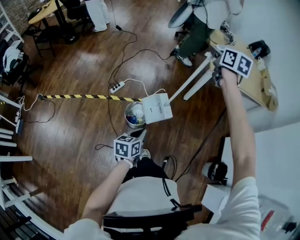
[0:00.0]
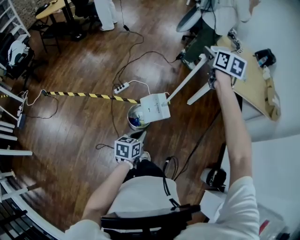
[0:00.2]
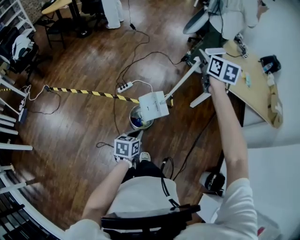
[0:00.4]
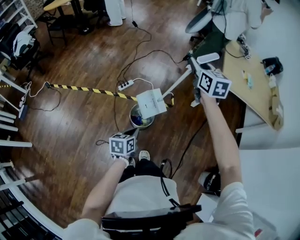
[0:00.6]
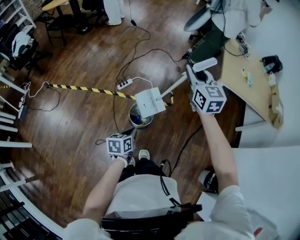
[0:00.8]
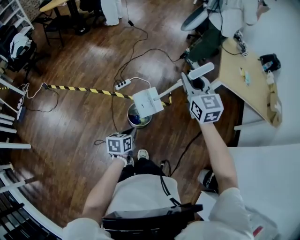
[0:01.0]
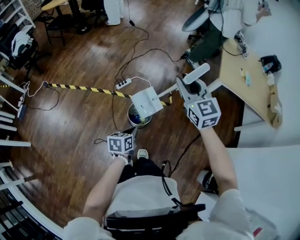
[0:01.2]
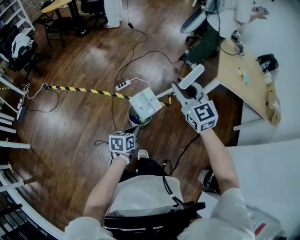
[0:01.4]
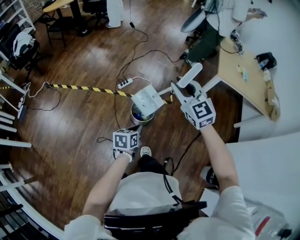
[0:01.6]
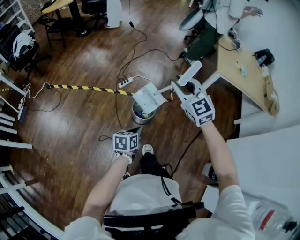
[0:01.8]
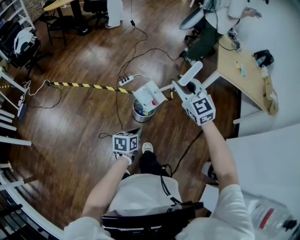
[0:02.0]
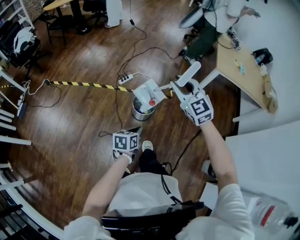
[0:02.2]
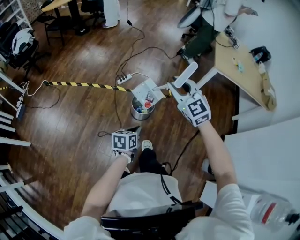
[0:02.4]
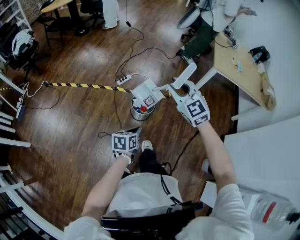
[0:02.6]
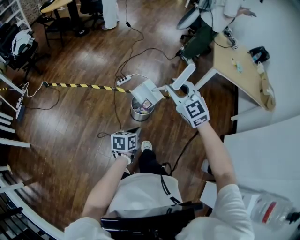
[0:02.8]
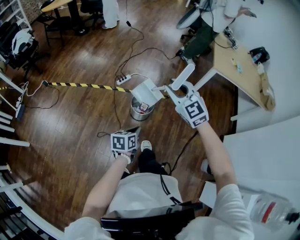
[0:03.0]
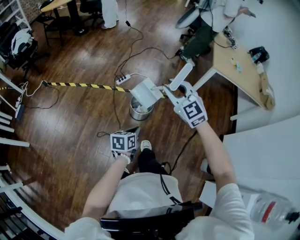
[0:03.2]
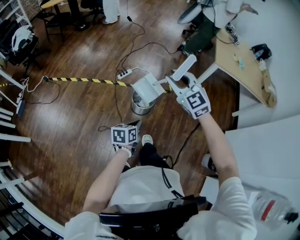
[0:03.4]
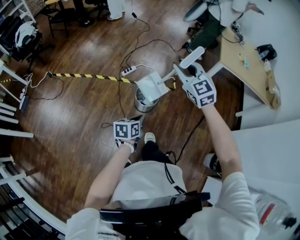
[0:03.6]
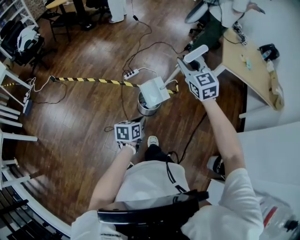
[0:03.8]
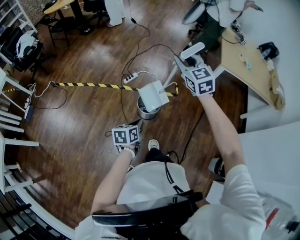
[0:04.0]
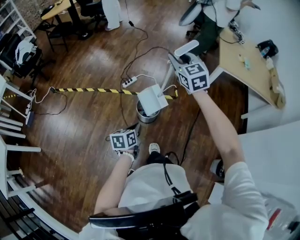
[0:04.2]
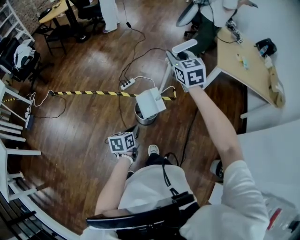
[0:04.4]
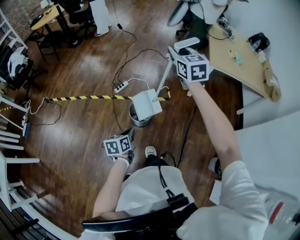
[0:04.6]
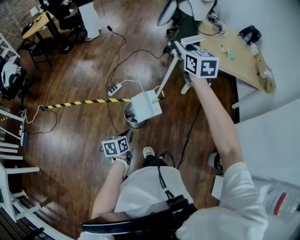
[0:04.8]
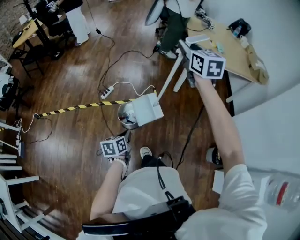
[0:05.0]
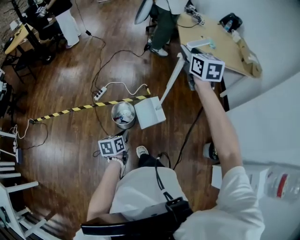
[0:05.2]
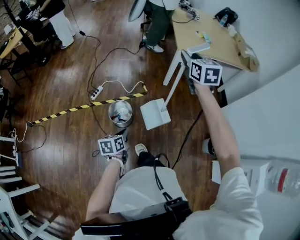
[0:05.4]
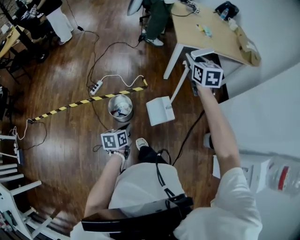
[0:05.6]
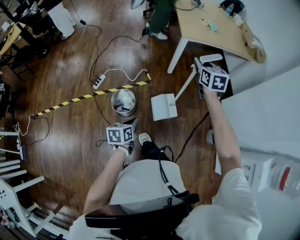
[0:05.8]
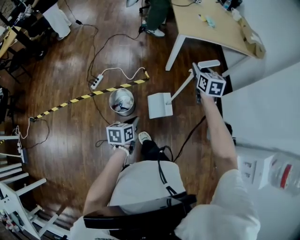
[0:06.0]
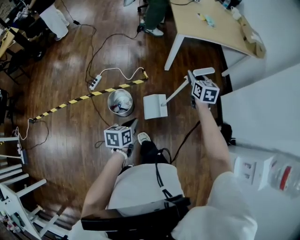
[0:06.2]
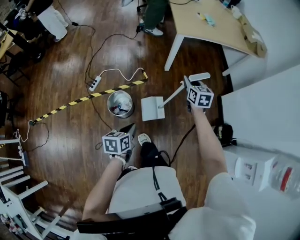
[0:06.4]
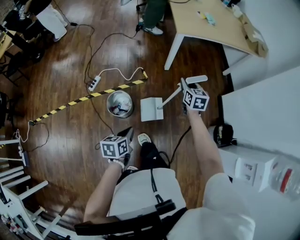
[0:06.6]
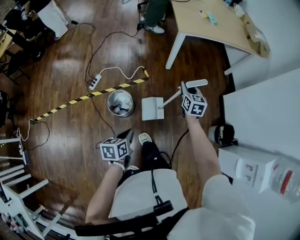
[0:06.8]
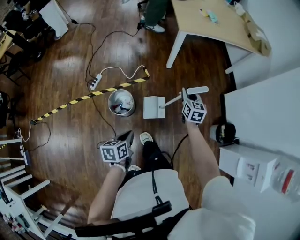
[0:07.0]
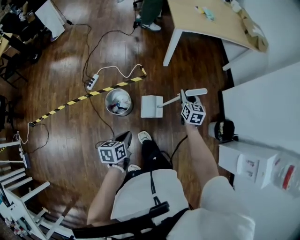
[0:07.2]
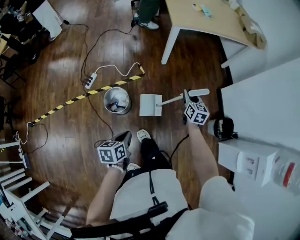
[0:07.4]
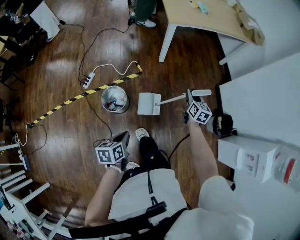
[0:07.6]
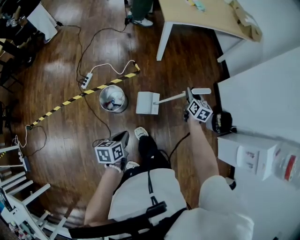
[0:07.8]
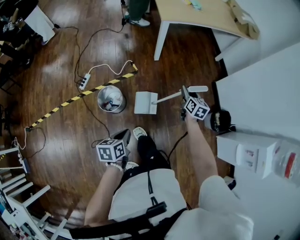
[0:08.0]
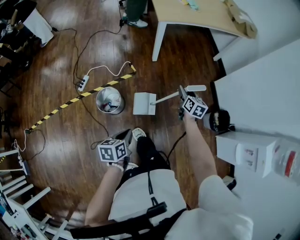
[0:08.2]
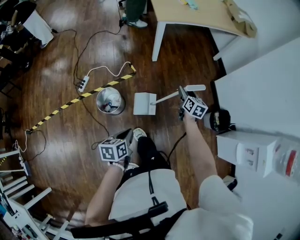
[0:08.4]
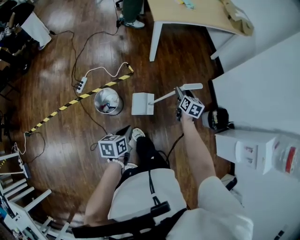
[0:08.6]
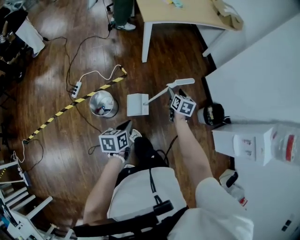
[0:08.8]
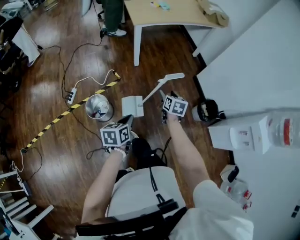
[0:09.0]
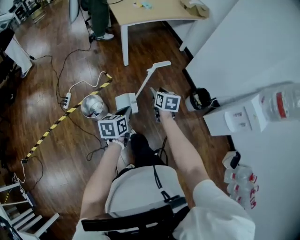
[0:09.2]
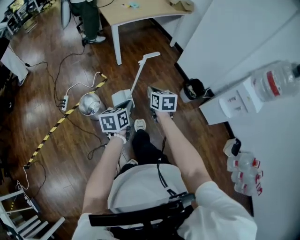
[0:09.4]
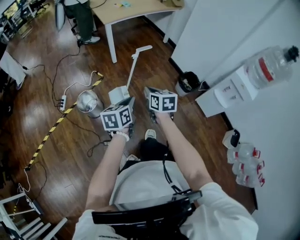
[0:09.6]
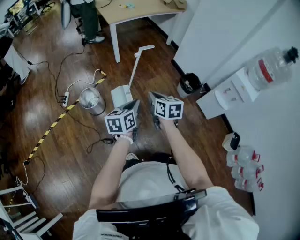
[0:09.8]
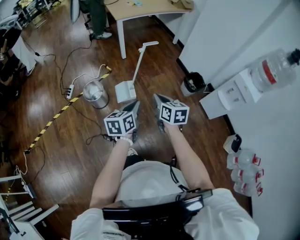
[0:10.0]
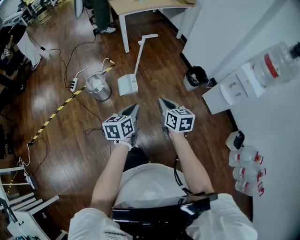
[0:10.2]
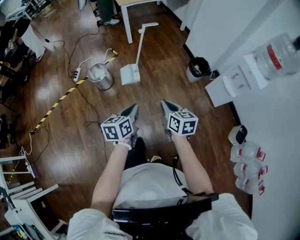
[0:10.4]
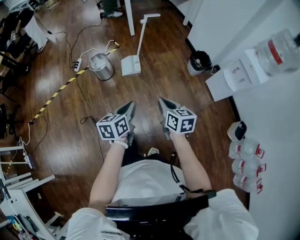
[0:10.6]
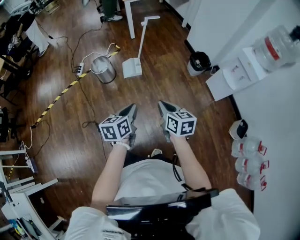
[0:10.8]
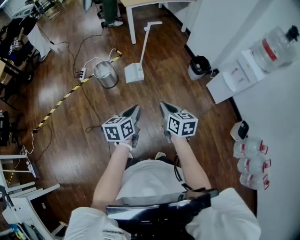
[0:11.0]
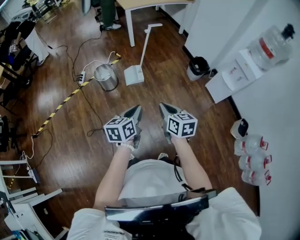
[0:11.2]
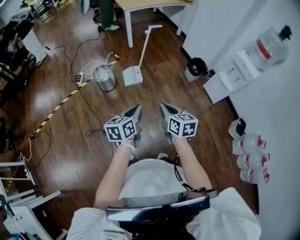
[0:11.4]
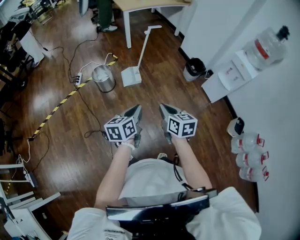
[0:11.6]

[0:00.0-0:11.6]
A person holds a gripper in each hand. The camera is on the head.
0.0 to 1.4 s: The right gripper travels to the left, backward and downward by approximately 30 cm, and changes its angle by approximately 50 degrees. Meanwhile the left gripper goes approximately 5 cm to the left.
1.4 to 2.8 s: The right gripper shifts some 15 cm backward and to the left; the left gripper goes approximately 10 cm backward.
2.8 to 4.4 s: The left gripper goes roughly 5 cm forward. Meanwhile the right gripper shifts roughly 20 cm forward, and changes its angle by about 20 degrees.
4.4 to 5.8 s: The right gripper moves roughly 35 cm, and swivels approximately 40 degrees. The left gripper changes place by about 15 cm, and turns by some 20 degrees.
5.8 to 7.2 s: The right gripper shifts approximately 25 cm downward.
7.2 to 8.8 s: Both grippers move to the right, approximately 10 cm. The right gripper changes its angle by roughly 20 degrees, and opens.
8.8 to 10.2 s: The left gripper travels backward, to the right and upward by roughly 40 cm; the right gripper travels backward by some 50 cm, and closes its fingers.
10.2 to 11.6 s: Both grippers move backward and to the left, some 20 cm.

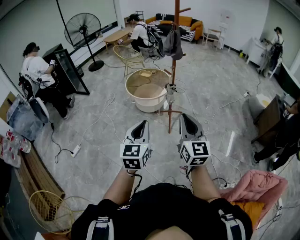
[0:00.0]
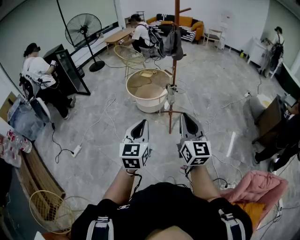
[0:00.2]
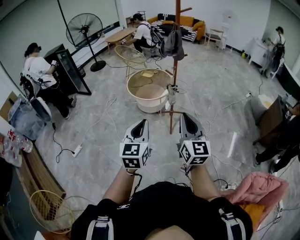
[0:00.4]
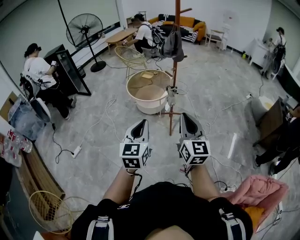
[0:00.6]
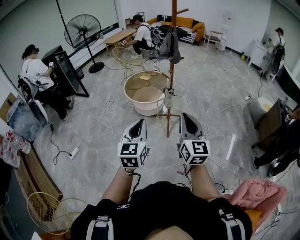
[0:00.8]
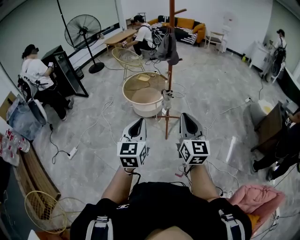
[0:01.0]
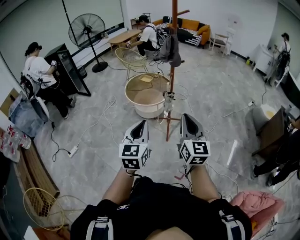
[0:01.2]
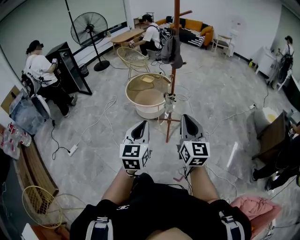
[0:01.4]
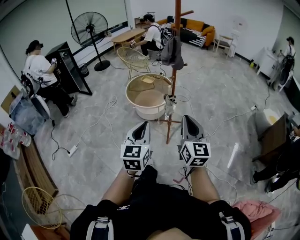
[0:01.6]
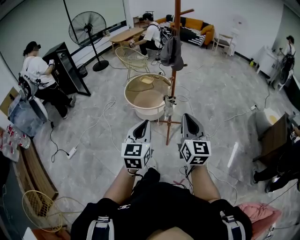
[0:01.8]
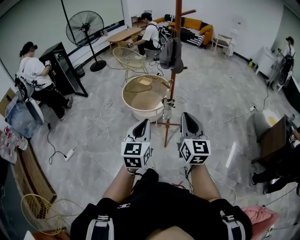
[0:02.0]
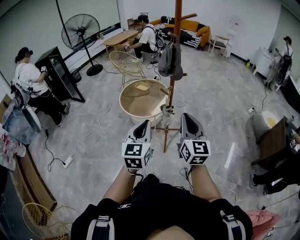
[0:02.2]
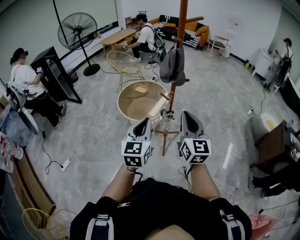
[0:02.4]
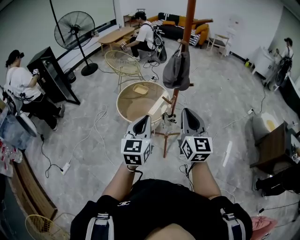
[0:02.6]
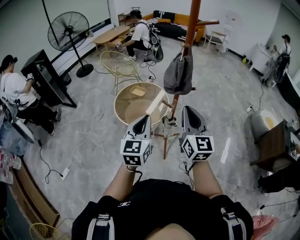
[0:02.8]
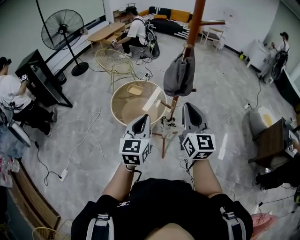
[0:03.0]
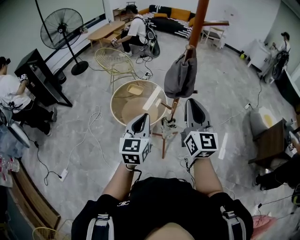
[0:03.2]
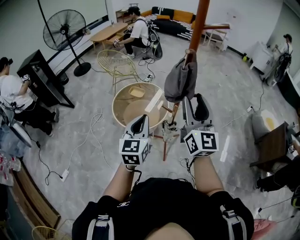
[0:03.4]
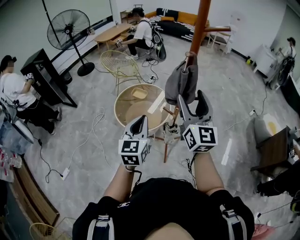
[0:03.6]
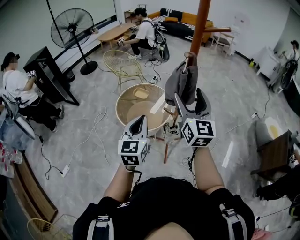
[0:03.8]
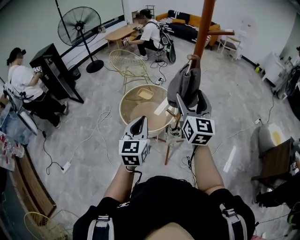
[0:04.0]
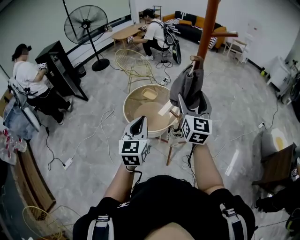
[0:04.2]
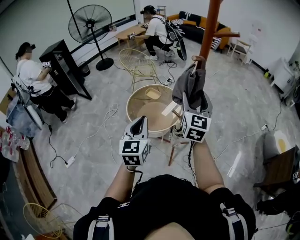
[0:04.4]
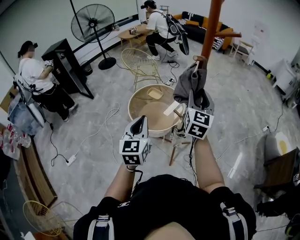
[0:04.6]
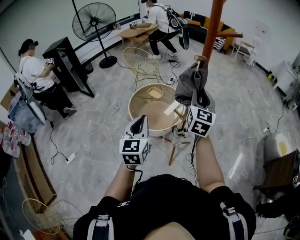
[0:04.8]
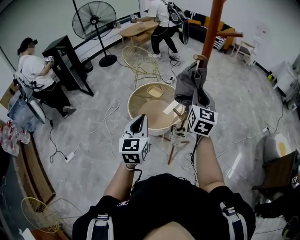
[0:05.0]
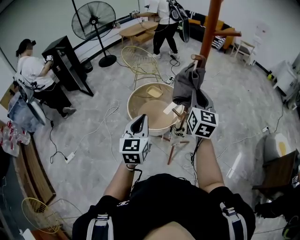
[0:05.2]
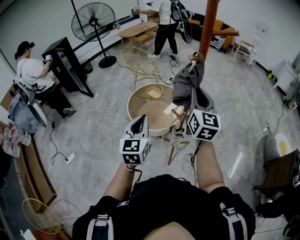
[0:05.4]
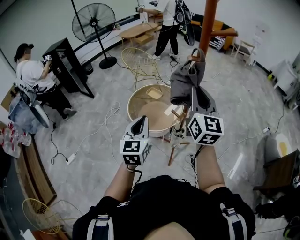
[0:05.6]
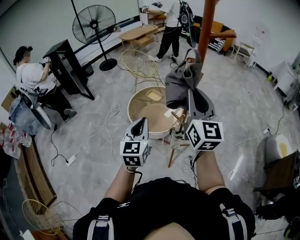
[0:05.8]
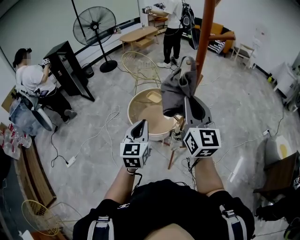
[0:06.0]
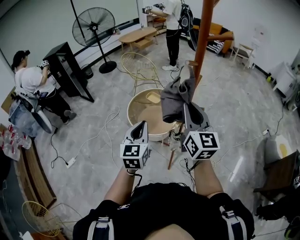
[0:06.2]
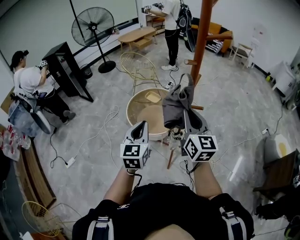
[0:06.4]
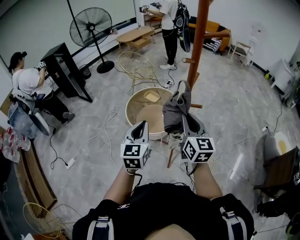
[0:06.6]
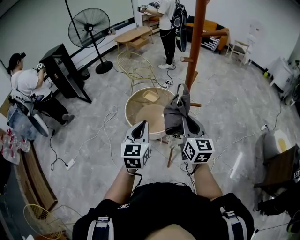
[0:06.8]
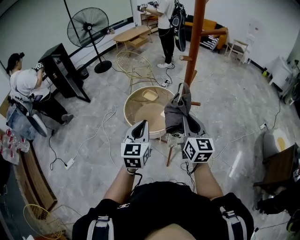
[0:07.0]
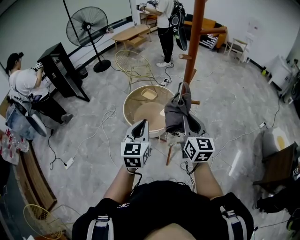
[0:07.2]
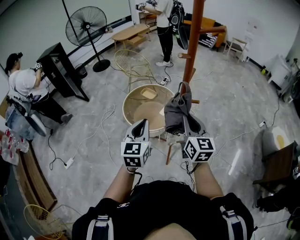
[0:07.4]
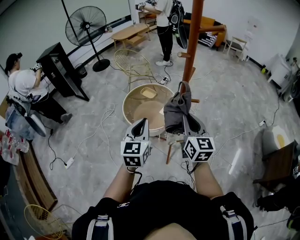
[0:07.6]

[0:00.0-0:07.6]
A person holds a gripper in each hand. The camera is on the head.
0.0 to 1.6 s: The two grippers go roughly 20 cm forward and to the right.
1.6 to 3.0 s: The two grippers travel together, forward, roughly 50 cm.
3.0 to 4.6 s: The right gripper moves forward, approximately 15 cm, and opens.
4.6 to 6.0 s: The right gripper moves backward and upward, approximately 10 cm, turns by approximately 20 degrees, and closes its fingers.
6.0 to 7.6 s: The right gripper travels downward by about 15 cm.

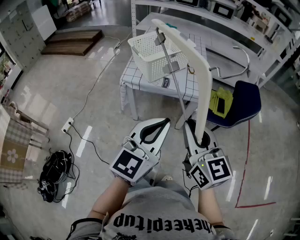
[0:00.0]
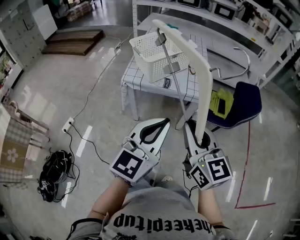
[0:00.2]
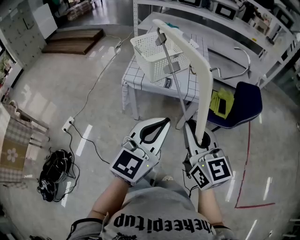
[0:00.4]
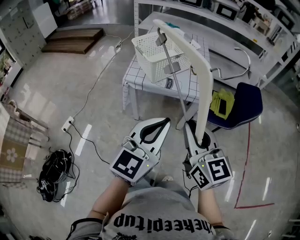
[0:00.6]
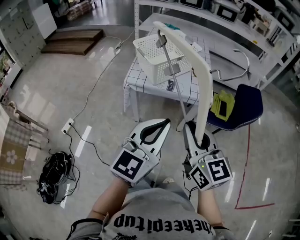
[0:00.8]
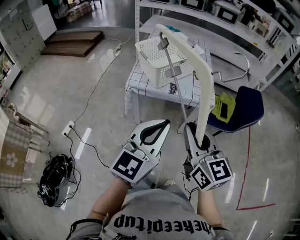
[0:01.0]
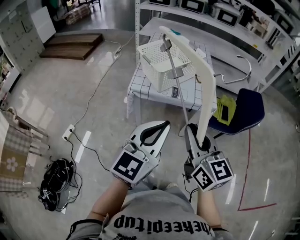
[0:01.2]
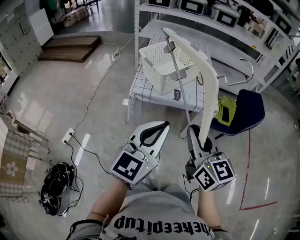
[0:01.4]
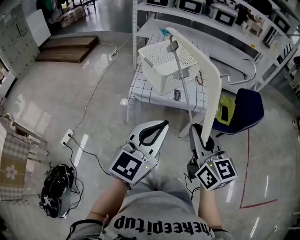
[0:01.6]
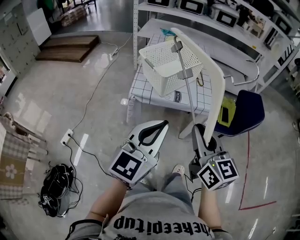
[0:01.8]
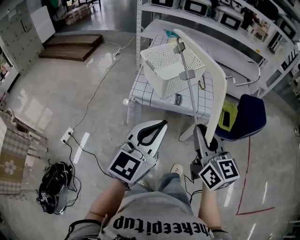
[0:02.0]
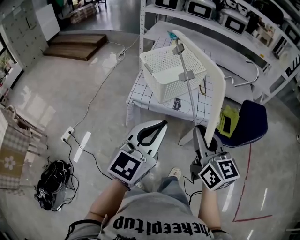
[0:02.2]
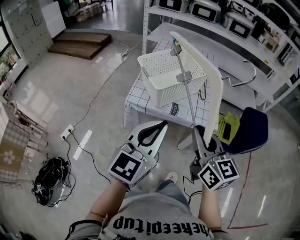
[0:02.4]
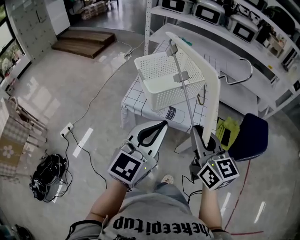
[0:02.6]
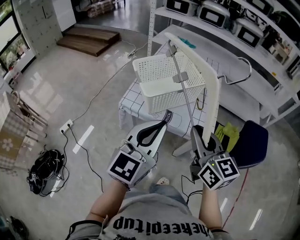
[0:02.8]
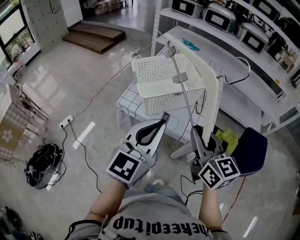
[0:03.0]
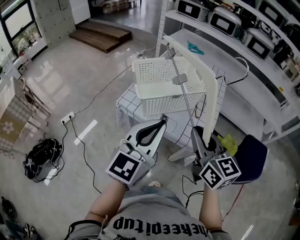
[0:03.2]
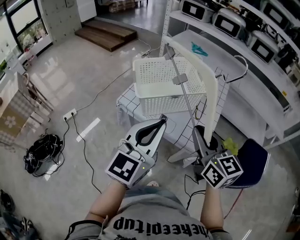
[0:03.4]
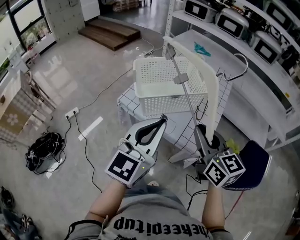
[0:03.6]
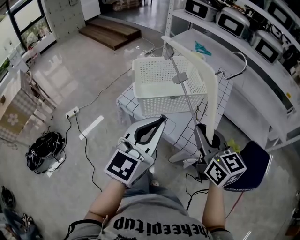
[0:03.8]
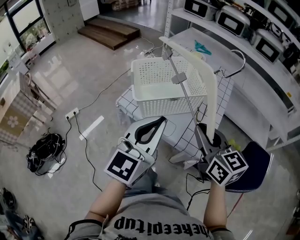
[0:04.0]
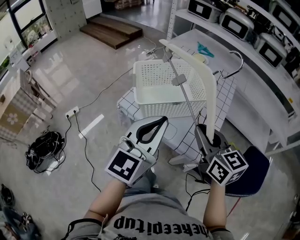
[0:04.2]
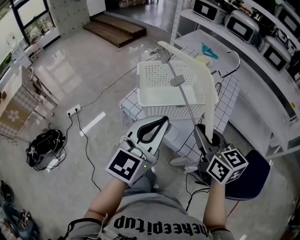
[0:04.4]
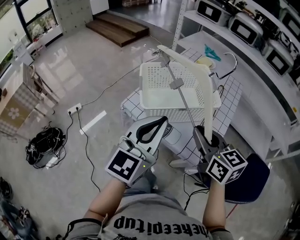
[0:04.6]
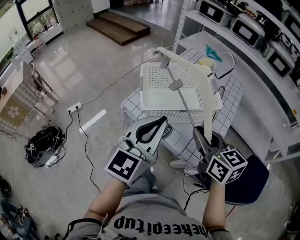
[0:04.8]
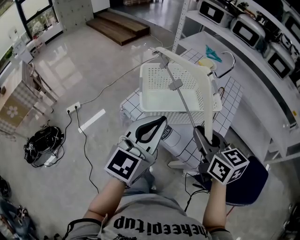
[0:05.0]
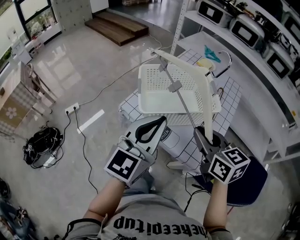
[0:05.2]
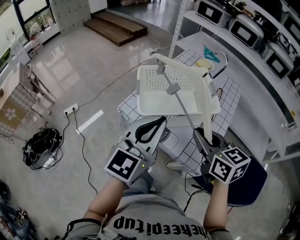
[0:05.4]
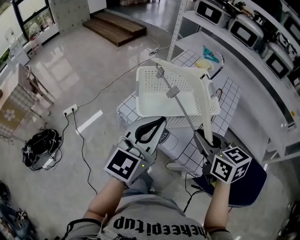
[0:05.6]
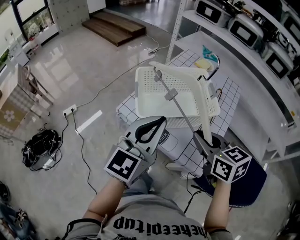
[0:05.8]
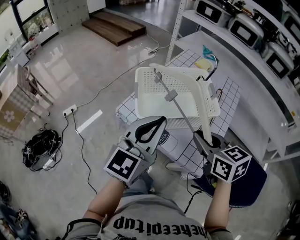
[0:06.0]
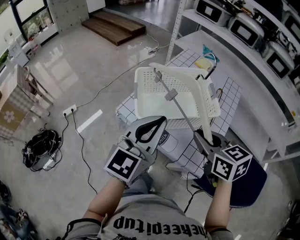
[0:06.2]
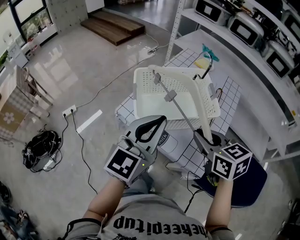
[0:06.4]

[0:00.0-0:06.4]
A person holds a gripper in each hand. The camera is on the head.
0.0 to 1.6 s: Both grippers move to the left, roughly 10 cm.
1.6 to 3.2 s: Both grippers move forward and to the right, about 25 cm. The left gripper rotates approximately 20 degrees. The right gripper changes its angle by approximately 20 degrees.
3.2 to 4.8 s: Both grippers move forward, some 10 cm.
4.8 to 6.4 s: The left gripper ends up roughly 5 cm from where it was.
